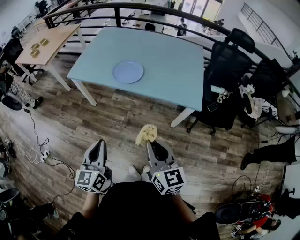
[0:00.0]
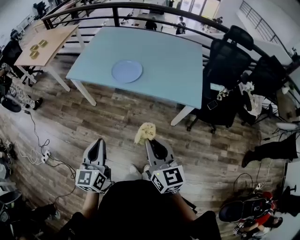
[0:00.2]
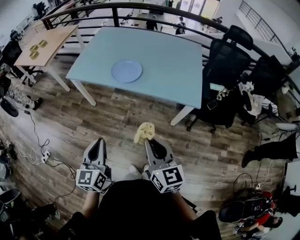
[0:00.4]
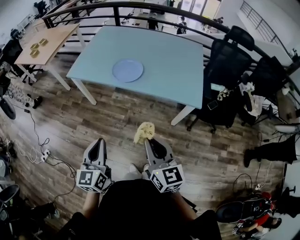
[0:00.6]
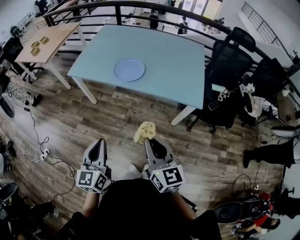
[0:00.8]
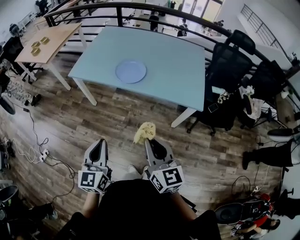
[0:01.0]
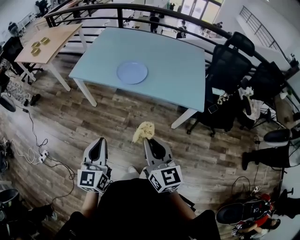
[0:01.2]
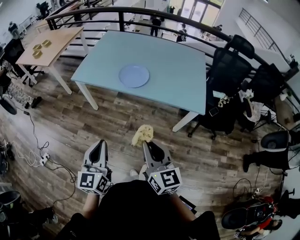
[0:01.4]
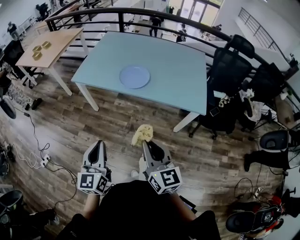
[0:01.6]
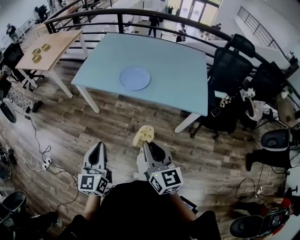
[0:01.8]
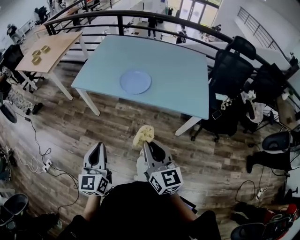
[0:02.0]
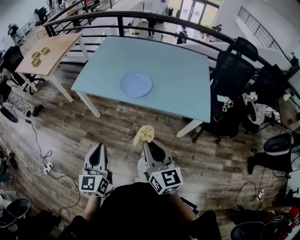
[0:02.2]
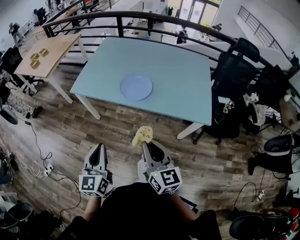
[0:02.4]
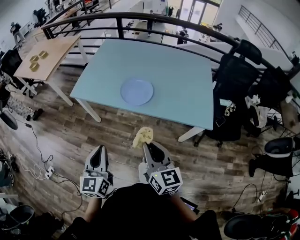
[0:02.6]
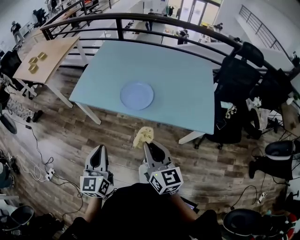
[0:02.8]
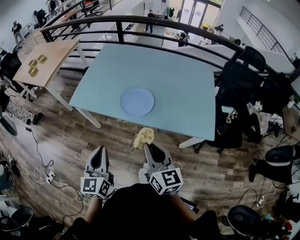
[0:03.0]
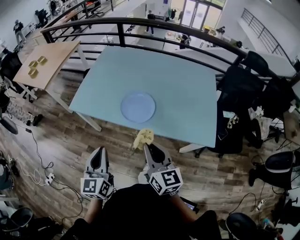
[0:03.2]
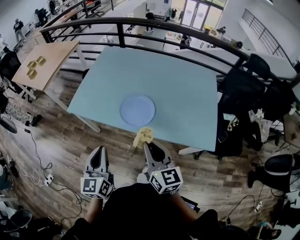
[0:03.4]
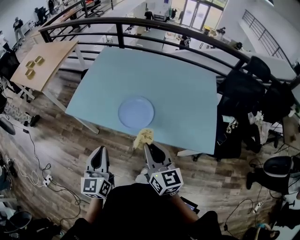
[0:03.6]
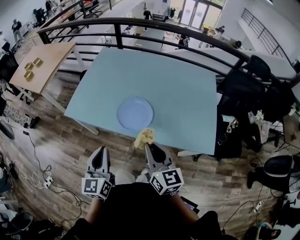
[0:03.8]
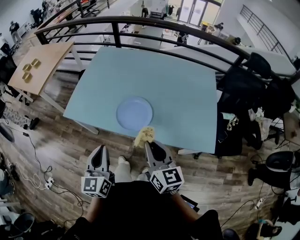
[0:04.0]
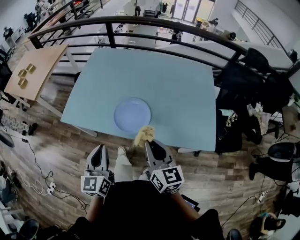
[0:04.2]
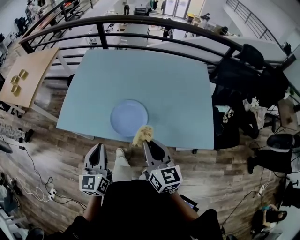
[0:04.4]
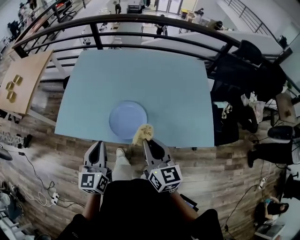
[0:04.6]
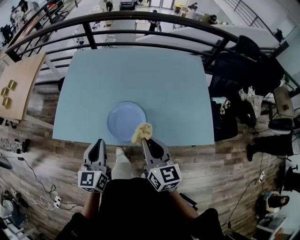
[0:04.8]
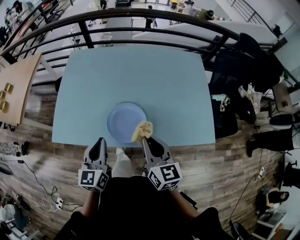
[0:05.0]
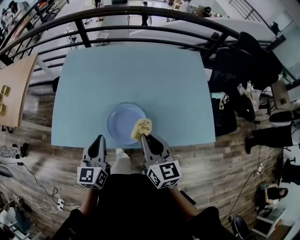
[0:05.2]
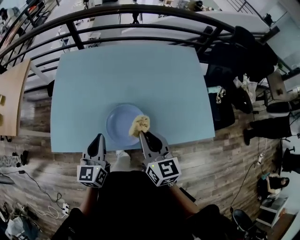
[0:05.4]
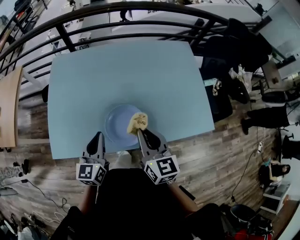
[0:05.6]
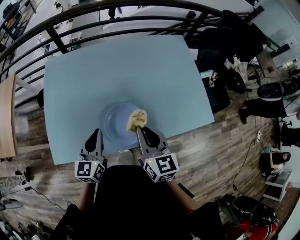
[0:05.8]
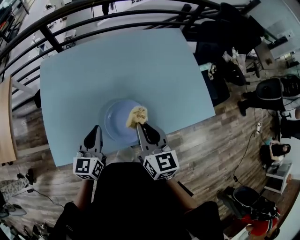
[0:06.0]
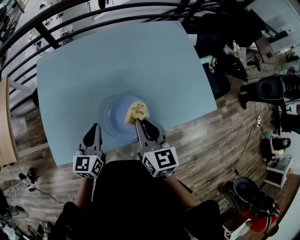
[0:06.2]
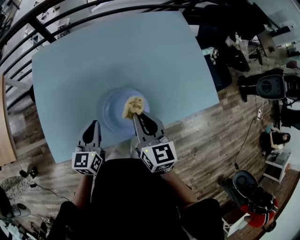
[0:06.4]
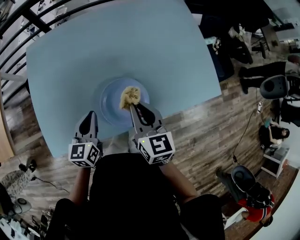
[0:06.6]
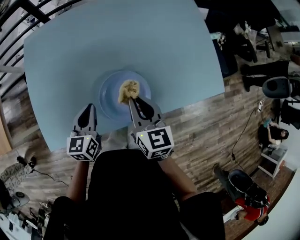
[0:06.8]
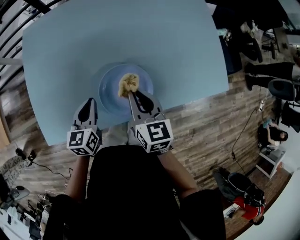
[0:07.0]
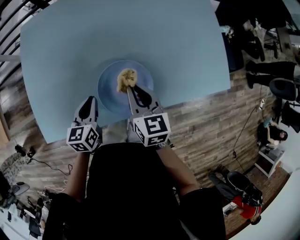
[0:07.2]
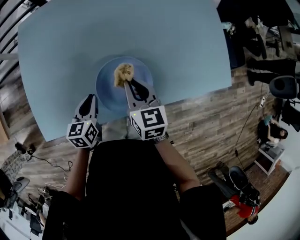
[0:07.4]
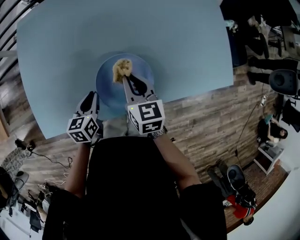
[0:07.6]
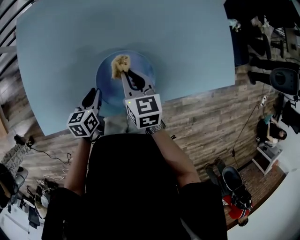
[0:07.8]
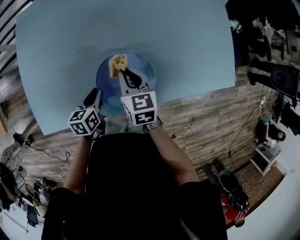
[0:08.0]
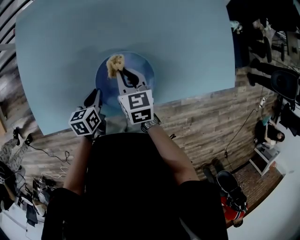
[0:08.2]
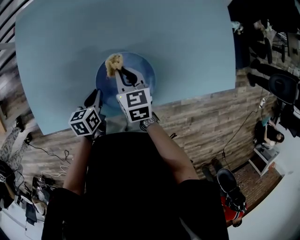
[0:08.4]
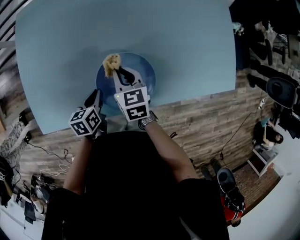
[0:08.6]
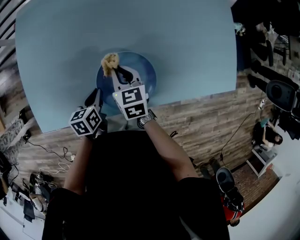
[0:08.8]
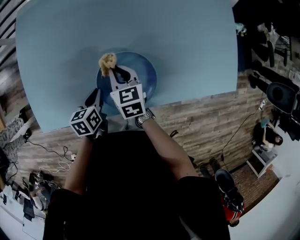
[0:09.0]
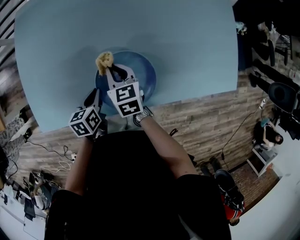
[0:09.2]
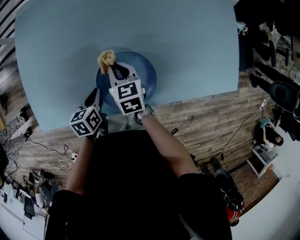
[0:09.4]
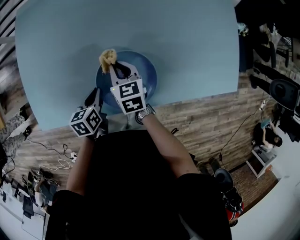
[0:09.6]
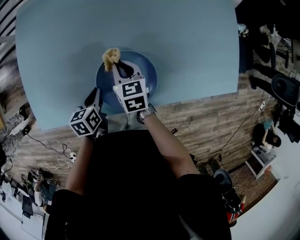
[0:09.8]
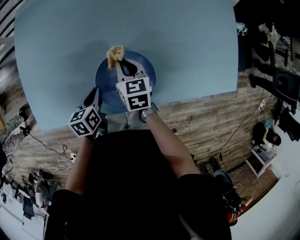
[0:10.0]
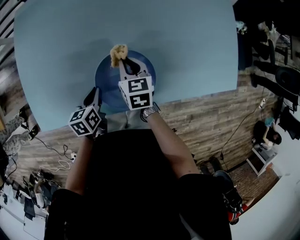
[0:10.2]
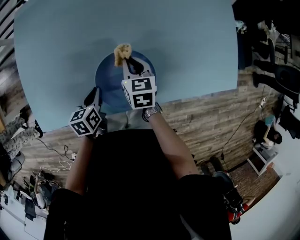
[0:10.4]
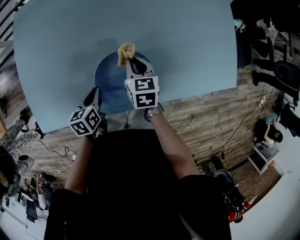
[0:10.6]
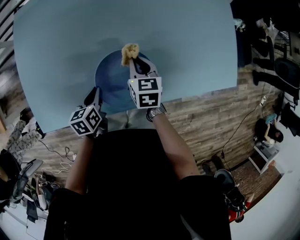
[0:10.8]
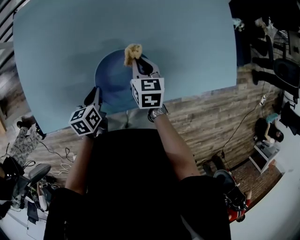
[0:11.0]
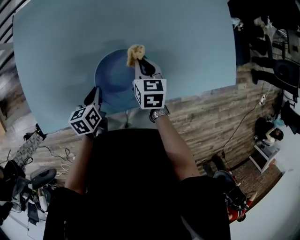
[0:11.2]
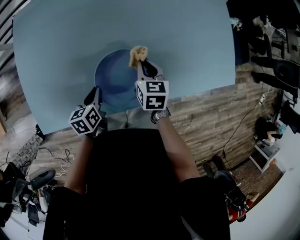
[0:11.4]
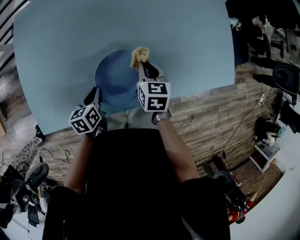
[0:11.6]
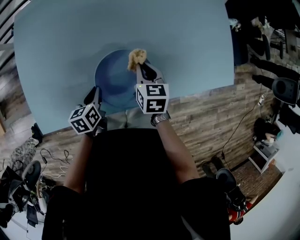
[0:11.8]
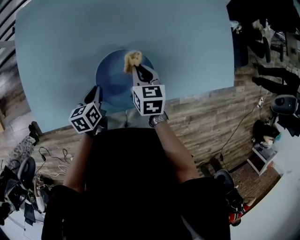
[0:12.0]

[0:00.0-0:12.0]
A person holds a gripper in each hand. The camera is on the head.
0:00.0 to 0:01.6: Both grippers travel together to the left, roughly 5 cm.
0:01.6 to 0:03.0: Both grippers move forward, approximately 20 cm.
0:03.0 to 0:04.4: The two grippers go about 15 cm forward.
0:04.4 to 0:06.0: The right gripper shifts by some 15 cm, and changes its angle by some 20 degrees. Meanwhile the left gripper changes place by roughly 25 cm, and turns by some 30 degrees.
0:06.0 to 0:07.6: The right gripper heads downward and forward, covering approximately 20 cm, and turns by approximately 20 degrees, while the left gripper heads downward, covering roughly 20 cm, and rotates some 30 degrees.
0:07.6 to 0:09.0: The right gripper is displaced downward and to the left by about 10 cm.
0:09.0 to 0:10.4: The right gripper travels to the right by some 5 cm.
0:10.4 to 0:12.0: The right gripper shifts by some 5 cm.

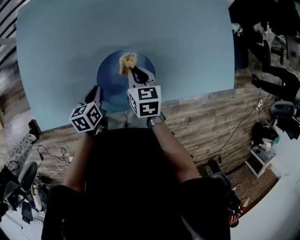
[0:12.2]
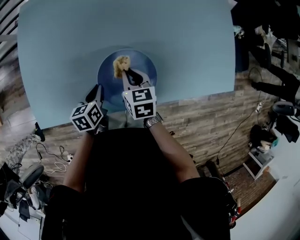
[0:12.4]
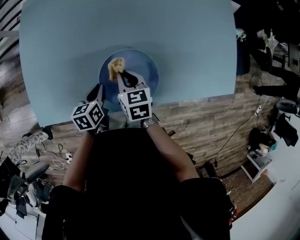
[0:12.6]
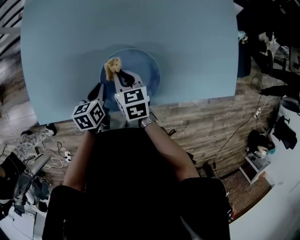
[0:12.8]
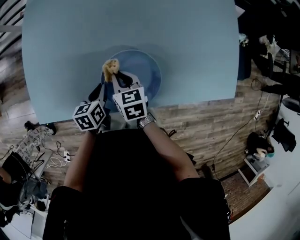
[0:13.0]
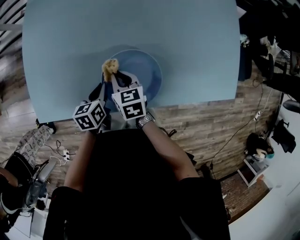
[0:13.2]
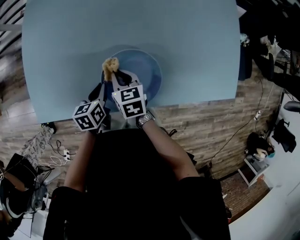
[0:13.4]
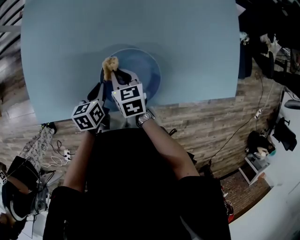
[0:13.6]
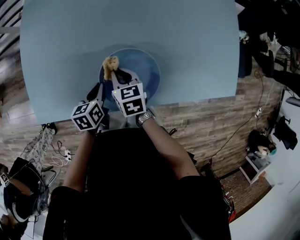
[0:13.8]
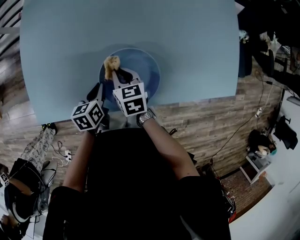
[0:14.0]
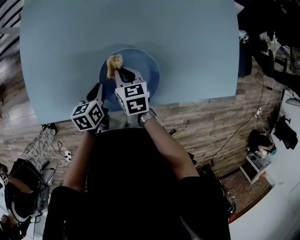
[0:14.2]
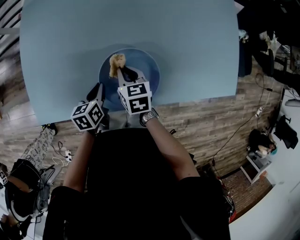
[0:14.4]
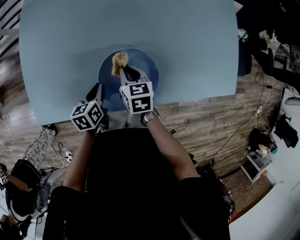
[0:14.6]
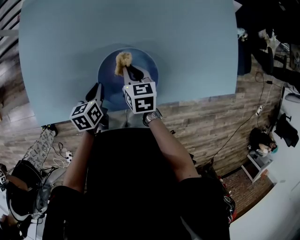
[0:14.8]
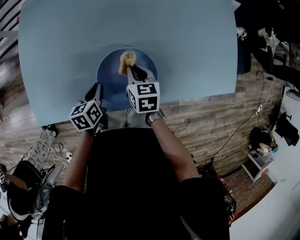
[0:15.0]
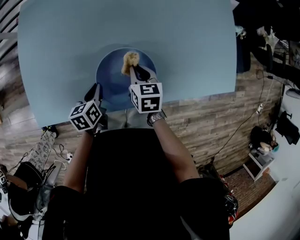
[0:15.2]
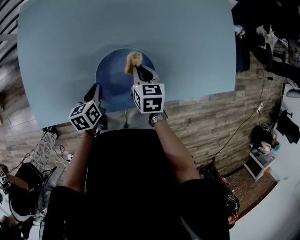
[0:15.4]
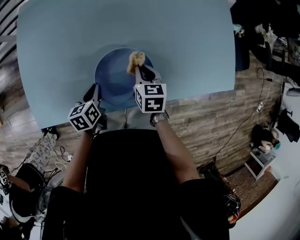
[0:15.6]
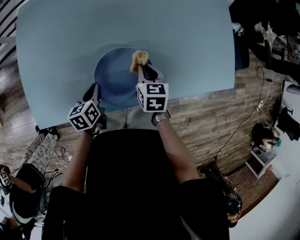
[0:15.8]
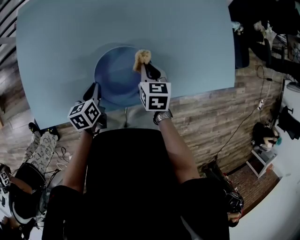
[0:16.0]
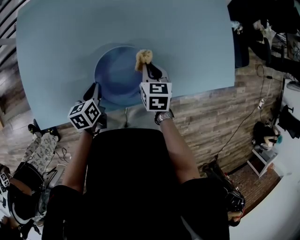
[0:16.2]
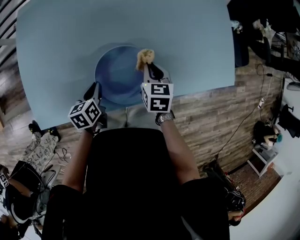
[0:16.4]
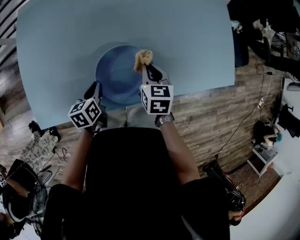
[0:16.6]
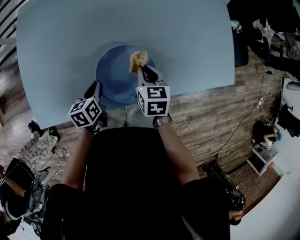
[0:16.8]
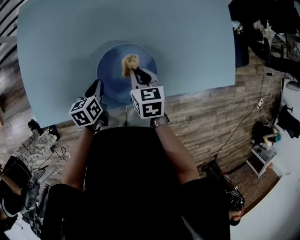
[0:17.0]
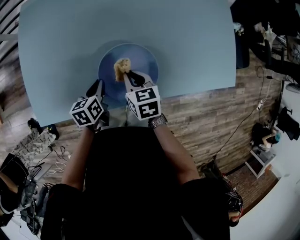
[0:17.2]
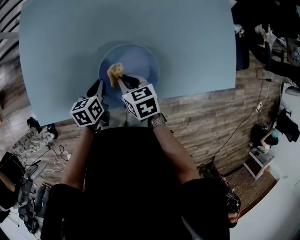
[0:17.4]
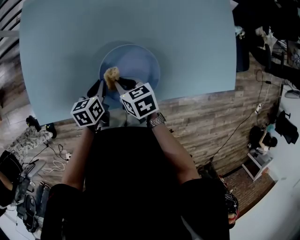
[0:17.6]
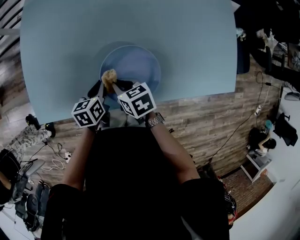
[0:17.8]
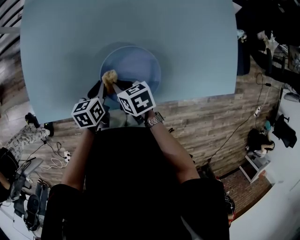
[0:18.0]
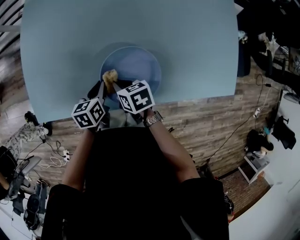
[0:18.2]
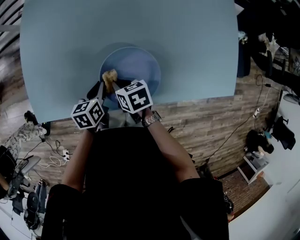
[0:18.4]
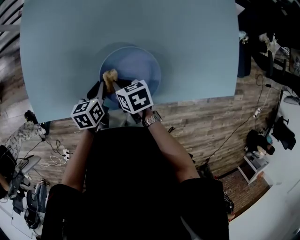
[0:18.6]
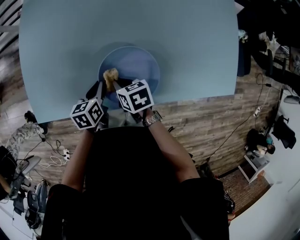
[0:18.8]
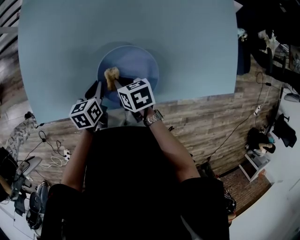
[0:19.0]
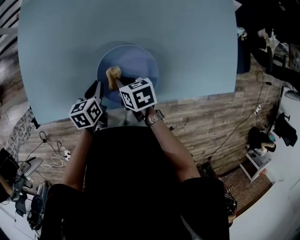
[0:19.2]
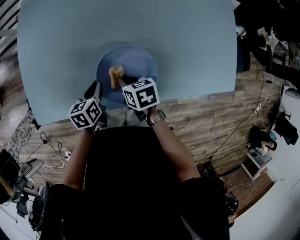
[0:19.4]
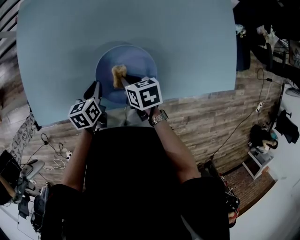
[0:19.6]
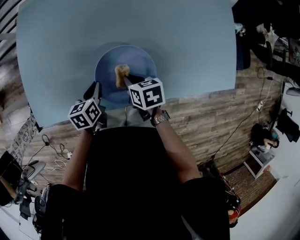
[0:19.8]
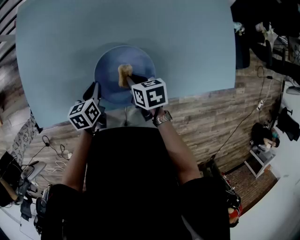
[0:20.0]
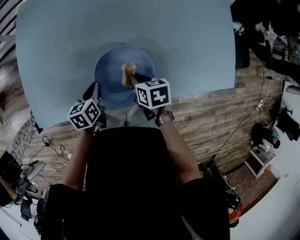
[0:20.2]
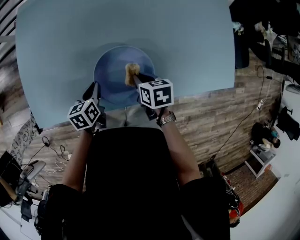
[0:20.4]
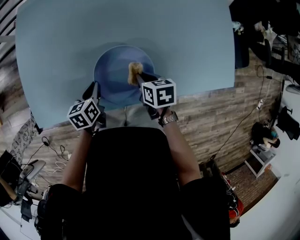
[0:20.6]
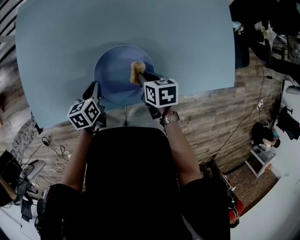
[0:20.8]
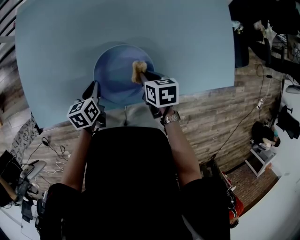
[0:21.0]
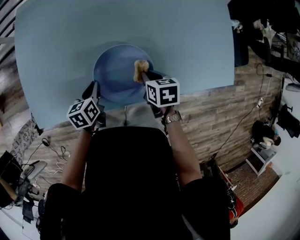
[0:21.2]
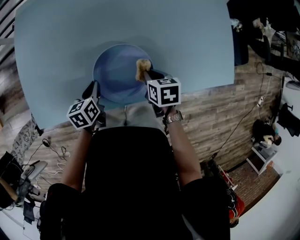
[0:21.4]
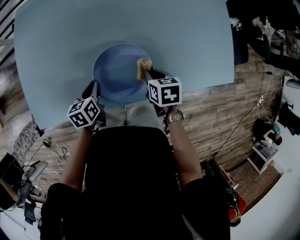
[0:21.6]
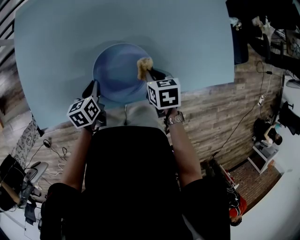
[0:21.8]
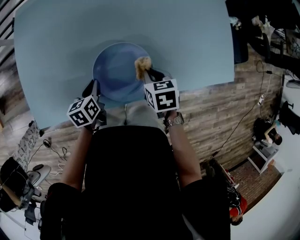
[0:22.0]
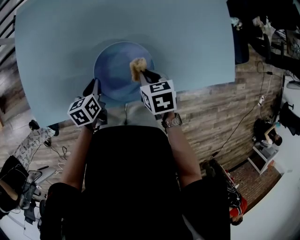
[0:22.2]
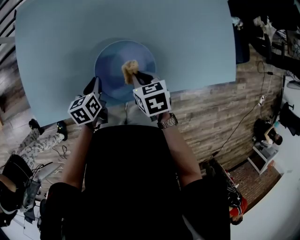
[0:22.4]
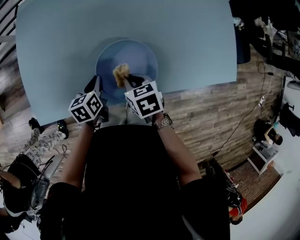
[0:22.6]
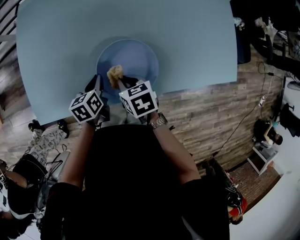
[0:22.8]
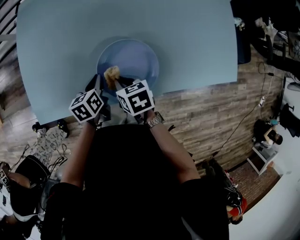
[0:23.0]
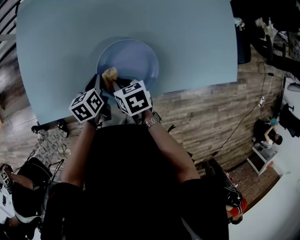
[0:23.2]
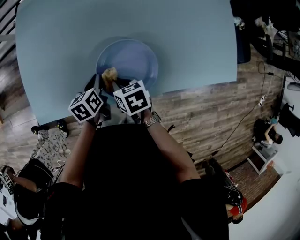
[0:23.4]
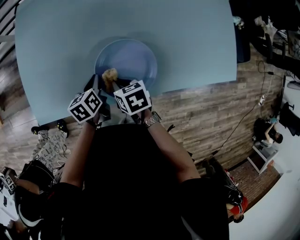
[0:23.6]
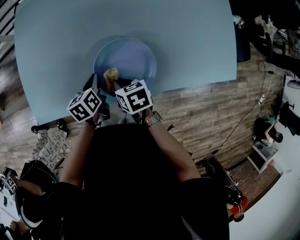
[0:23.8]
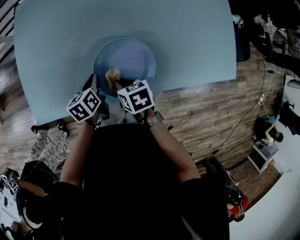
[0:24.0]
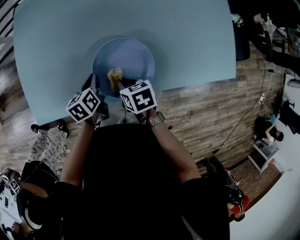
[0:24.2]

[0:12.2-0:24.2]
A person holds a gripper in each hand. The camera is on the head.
0:12.2 to 0:13.8: The right gripper heads to the left, covering approximately 10 cm.
0:13.8 to 0:15.2: The right gripper moves to the right, some 10 cm.
0:15.2 to 0:16.6: The right gripper is displaced to the right by some 5 cm.
0:16.6 to 0:18.2: The right gripper moves some 15 cm, and changes its angle by roughly 40 degrees.
0:18.2 to 0:19.8: The right gripper is displaced to the right by approximately 5 cm.
0:19.8 to 0:21.2: The right gripper moves to the right, roughly 10 cm.
0:21.2 to 0:22.6: The right gripper travels to the left by about 10 cm.
0:22.6 to 0:24.2: The grippers move only a little.
